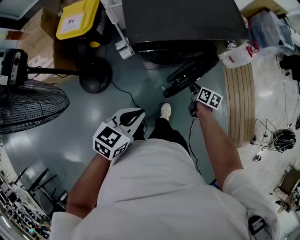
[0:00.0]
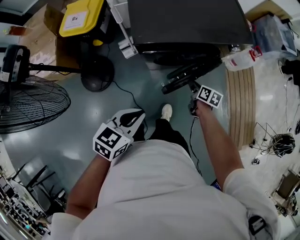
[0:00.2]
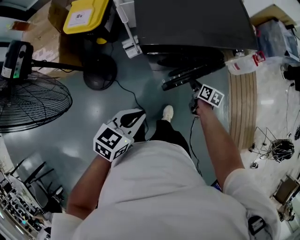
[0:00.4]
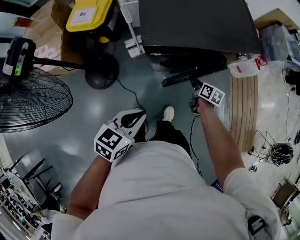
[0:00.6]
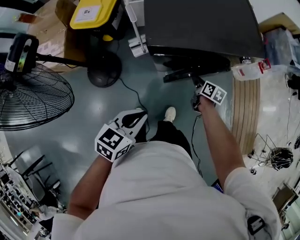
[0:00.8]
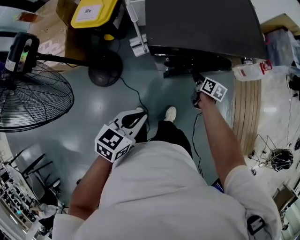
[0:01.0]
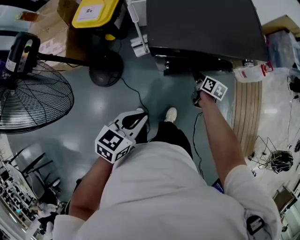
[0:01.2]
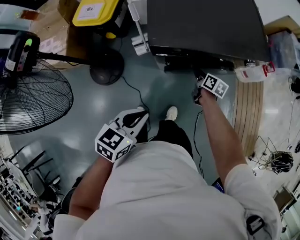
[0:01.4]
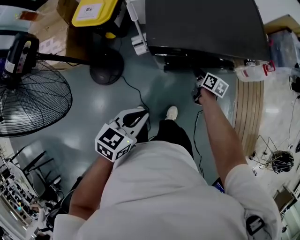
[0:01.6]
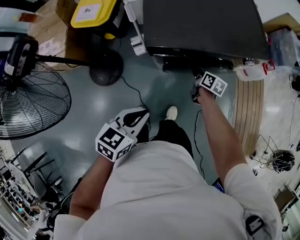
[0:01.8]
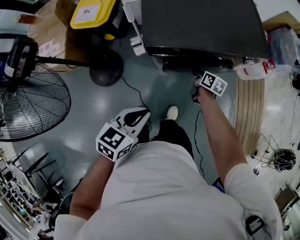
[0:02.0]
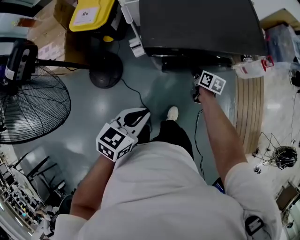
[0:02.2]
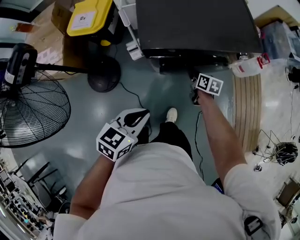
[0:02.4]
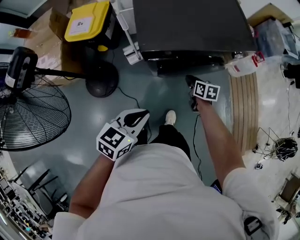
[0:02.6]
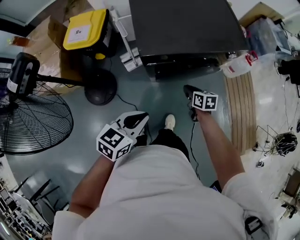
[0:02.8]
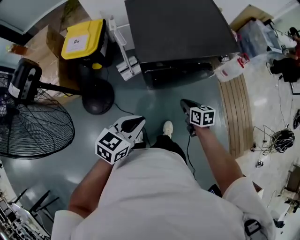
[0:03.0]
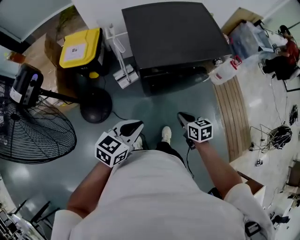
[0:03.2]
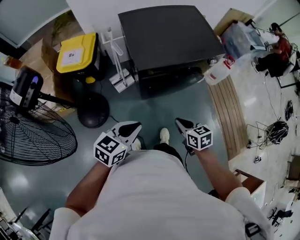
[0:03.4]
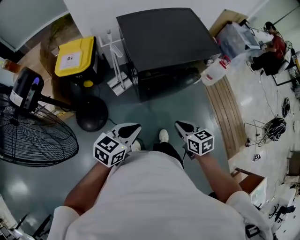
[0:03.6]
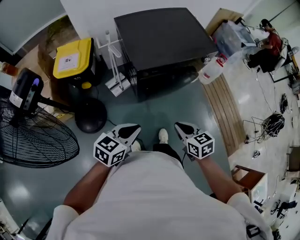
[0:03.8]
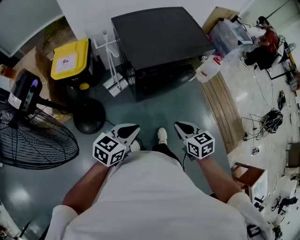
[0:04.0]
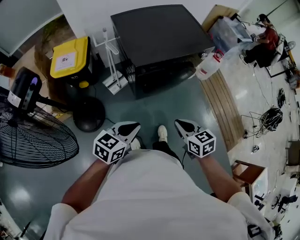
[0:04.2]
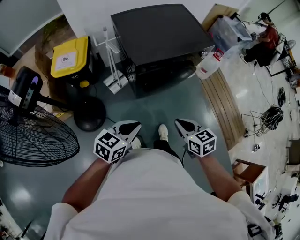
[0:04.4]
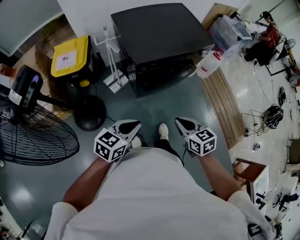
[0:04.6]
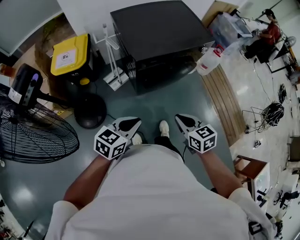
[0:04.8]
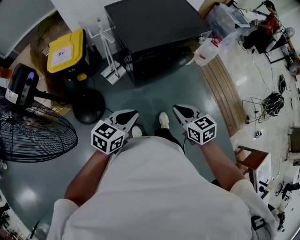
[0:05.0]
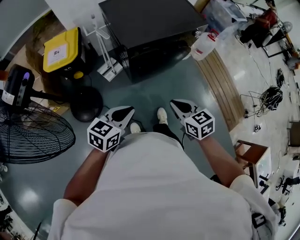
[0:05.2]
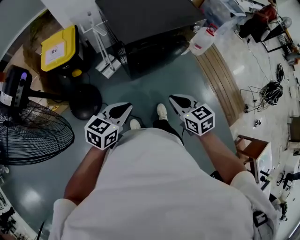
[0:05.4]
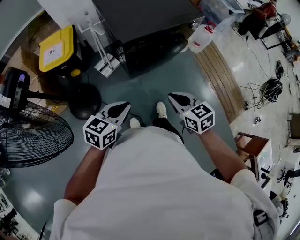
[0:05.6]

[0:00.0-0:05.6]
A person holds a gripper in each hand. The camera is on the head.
0:00.0 to 0:01.4: The right gripper goes roughly 15 cm forward and to the left.
0:01.4 to 0:02.8: The right gripper moves backward and upward, roughly 10 cm.
0:02.8 to 0:04.2: The left gripper shifts some 10 cm backward and to the left. Meanwhile the right gripper is displaced backward and upward by roughly 30 cm.
0:04.2 to 0:05.6: The grippers stay close to where they were, moving slightly.

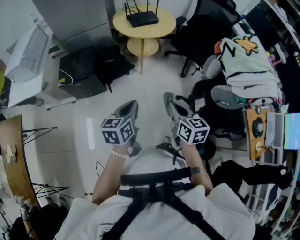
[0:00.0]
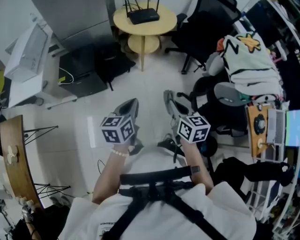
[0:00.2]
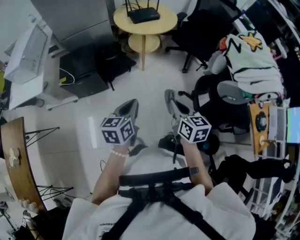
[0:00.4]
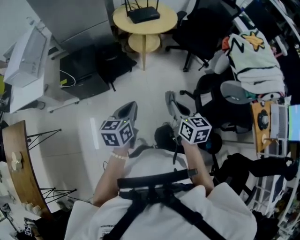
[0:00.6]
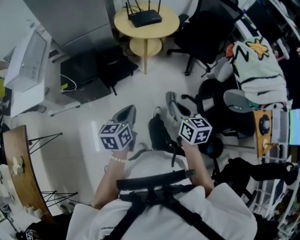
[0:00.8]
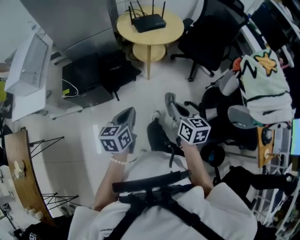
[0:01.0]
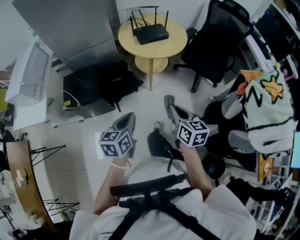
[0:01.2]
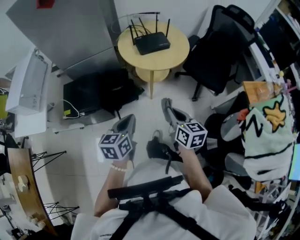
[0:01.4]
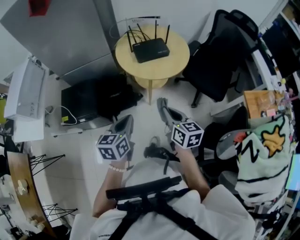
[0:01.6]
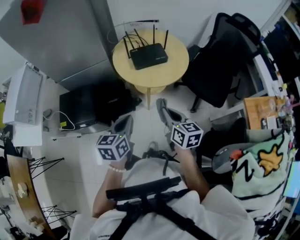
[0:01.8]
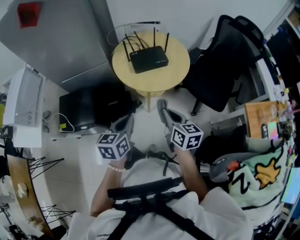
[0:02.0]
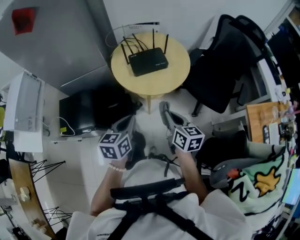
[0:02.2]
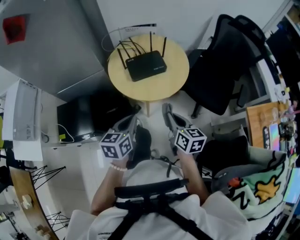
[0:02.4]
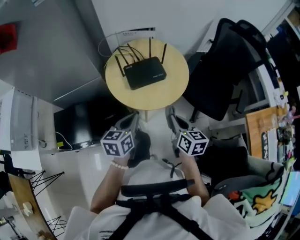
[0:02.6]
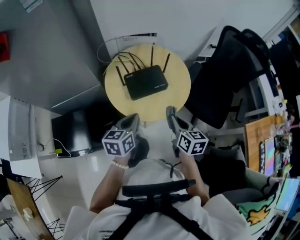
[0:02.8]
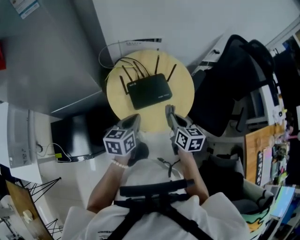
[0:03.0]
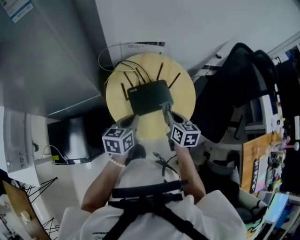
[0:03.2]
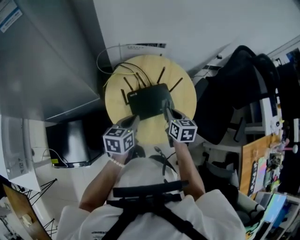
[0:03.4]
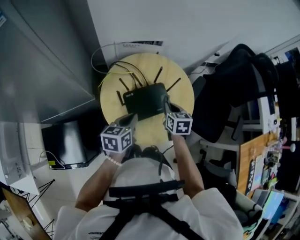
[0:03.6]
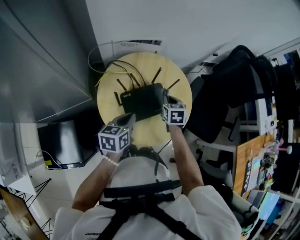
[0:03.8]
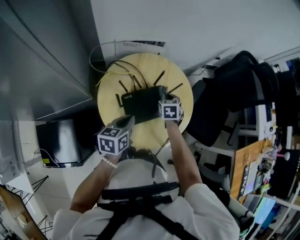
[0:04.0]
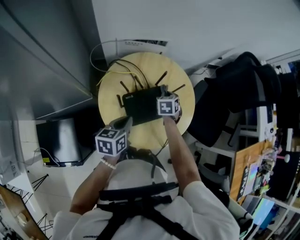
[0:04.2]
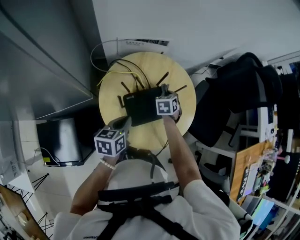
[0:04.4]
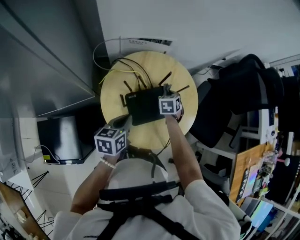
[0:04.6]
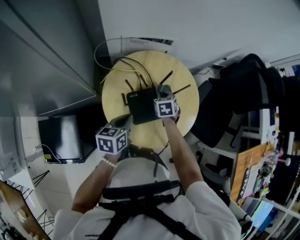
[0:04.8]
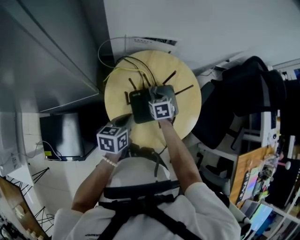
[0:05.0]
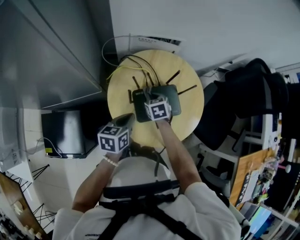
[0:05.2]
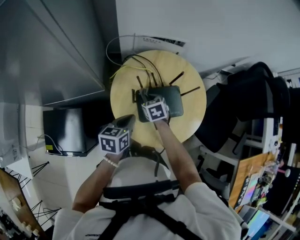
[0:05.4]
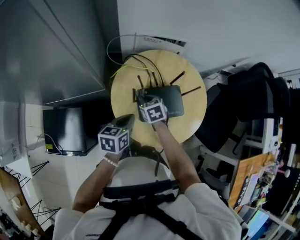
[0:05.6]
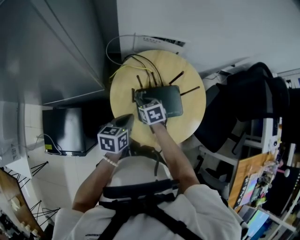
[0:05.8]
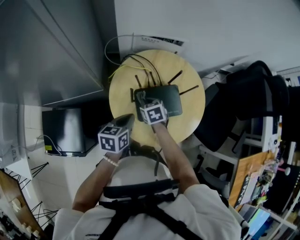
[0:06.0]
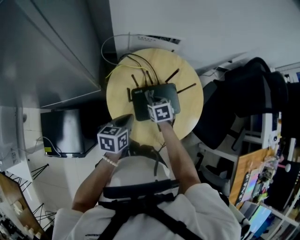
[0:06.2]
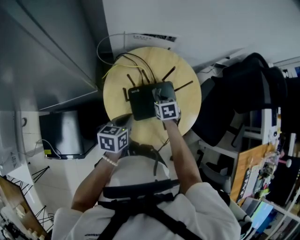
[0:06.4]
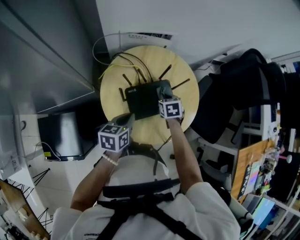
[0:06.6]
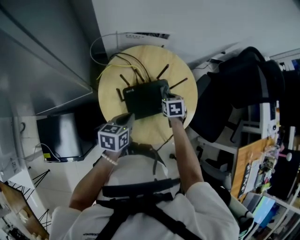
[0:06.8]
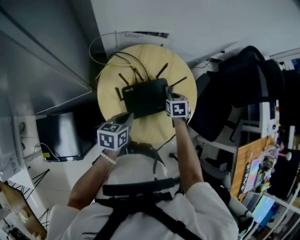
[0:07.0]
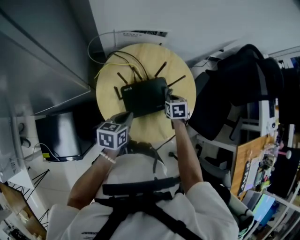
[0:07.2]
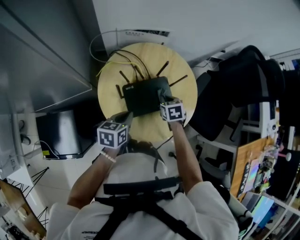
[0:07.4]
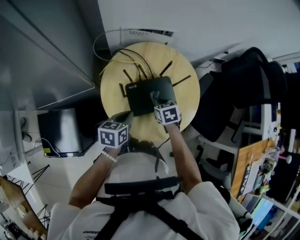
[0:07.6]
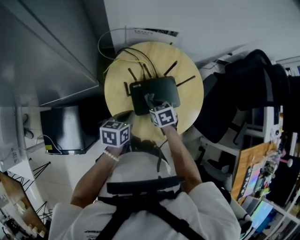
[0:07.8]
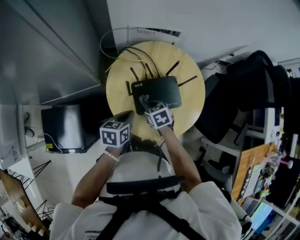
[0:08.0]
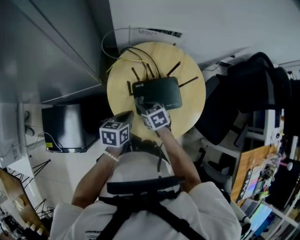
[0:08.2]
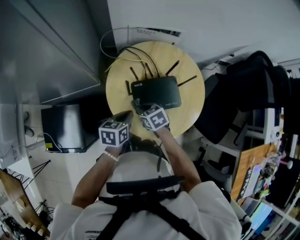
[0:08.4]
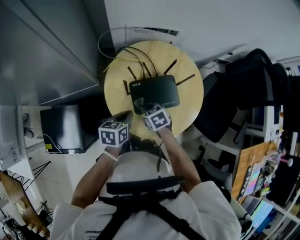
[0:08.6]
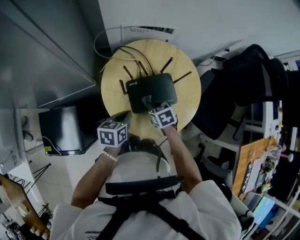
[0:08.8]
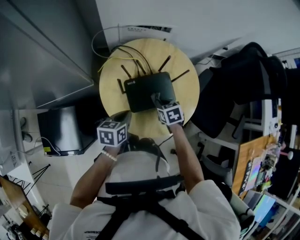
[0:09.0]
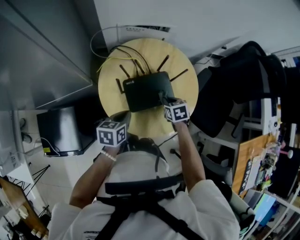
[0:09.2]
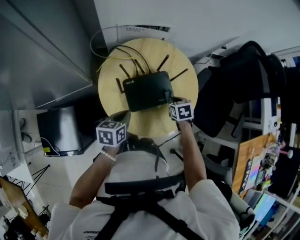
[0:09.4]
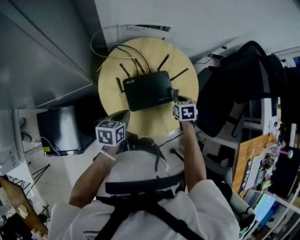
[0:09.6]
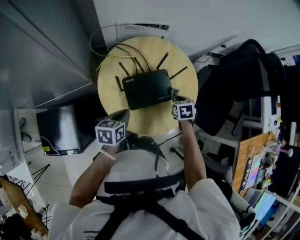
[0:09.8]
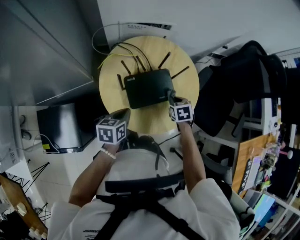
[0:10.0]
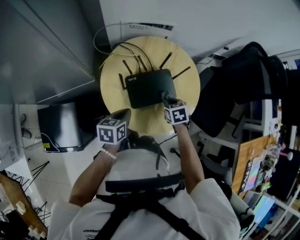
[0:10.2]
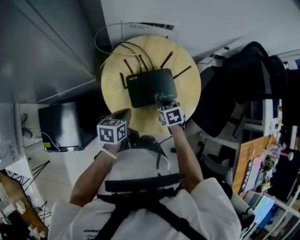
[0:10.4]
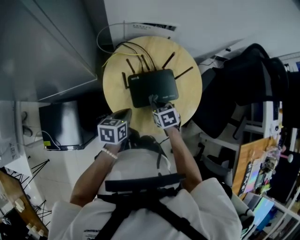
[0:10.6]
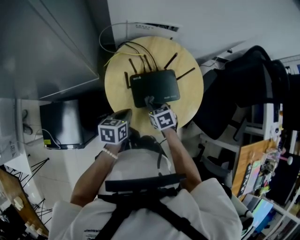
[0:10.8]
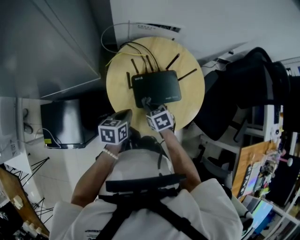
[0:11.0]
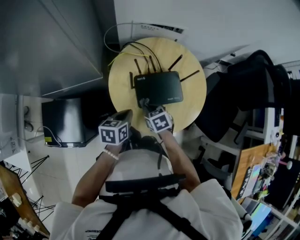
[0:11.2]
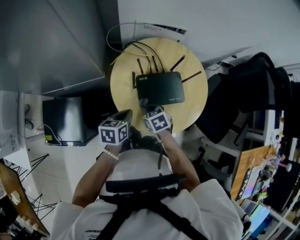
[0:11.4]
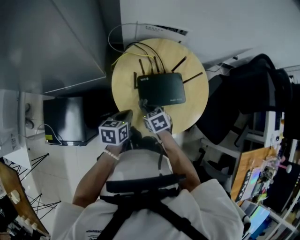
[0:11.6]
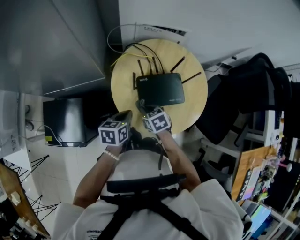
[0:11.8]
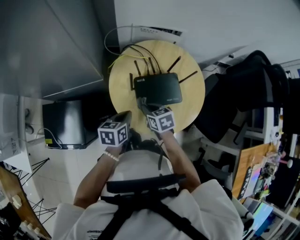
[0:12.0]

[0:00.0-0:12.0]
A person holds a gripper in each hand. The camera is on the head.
0:00.0 to 0:01.6: Both grippers move forward, approximately 35 cm.
0:01.6 to 0:03.0: Both grippers travel together forward, approximately 35 cm.
0:03.0 to 0:04.4: The right gripper travels forward and downward by approximately 30 cm, and turns by approximately 40 degrees. Meanwhile the left gripper is displaced forward, downward and to the left by about 15 cm.
0:04.4 to 0:06.0: The right gripper ends up roughly 20 cm from where it was, and rotates roughly 30 degrees.
0:06.0 to 0:07.6: The right gripper goes approximately 10 cm to the right.
0:07.6 to 0:09.0: The right gripper travels to the left and back again, about 10 cm each way.
0:09.0 to 0:10.4: The right gripper reaches approximately 10 cm to the right, then returns.
0:10.4 to 0:12.0: The right gripper moves to the left, some 10 cm.

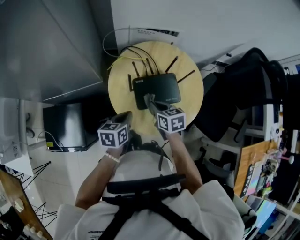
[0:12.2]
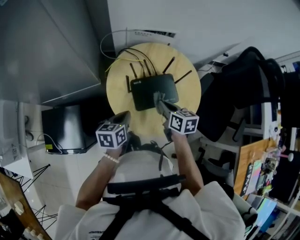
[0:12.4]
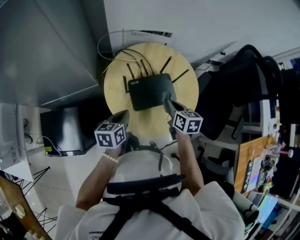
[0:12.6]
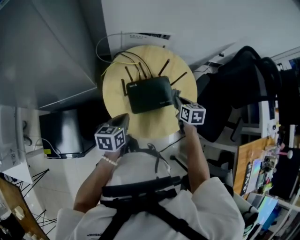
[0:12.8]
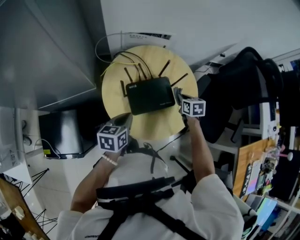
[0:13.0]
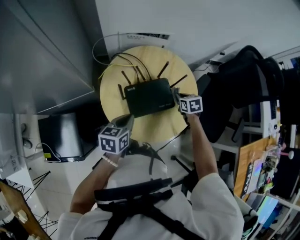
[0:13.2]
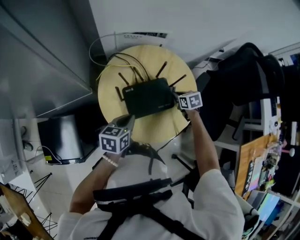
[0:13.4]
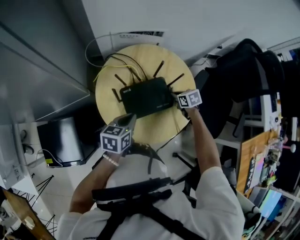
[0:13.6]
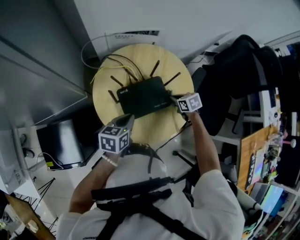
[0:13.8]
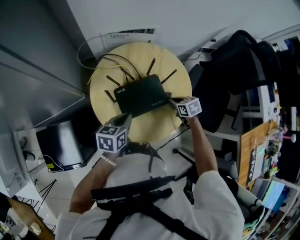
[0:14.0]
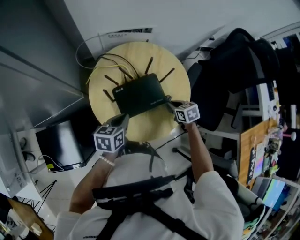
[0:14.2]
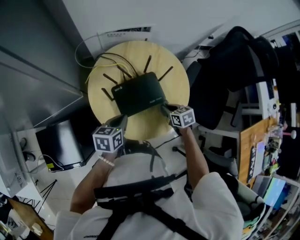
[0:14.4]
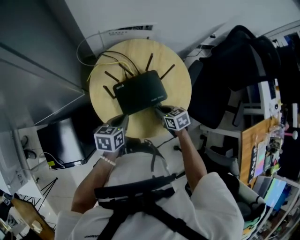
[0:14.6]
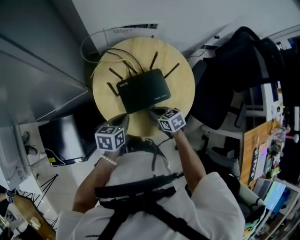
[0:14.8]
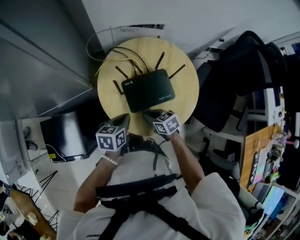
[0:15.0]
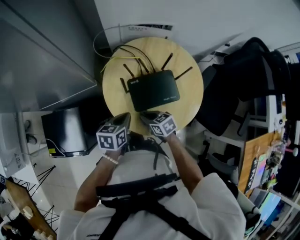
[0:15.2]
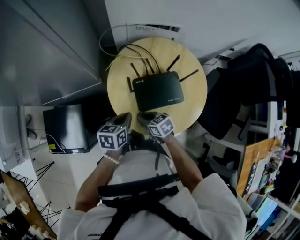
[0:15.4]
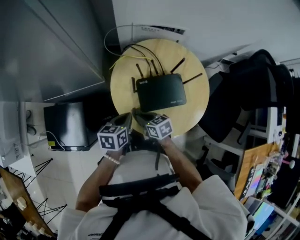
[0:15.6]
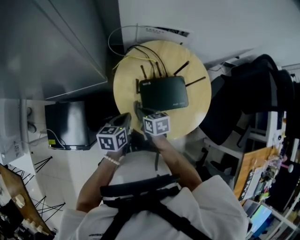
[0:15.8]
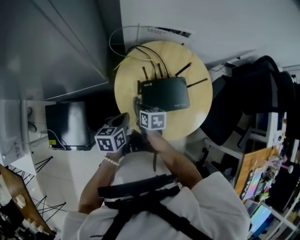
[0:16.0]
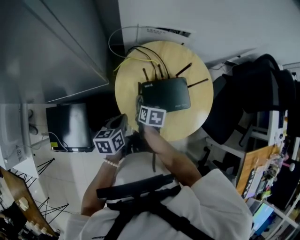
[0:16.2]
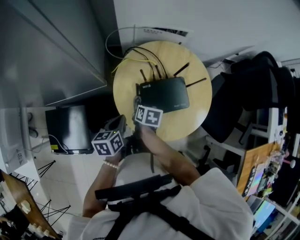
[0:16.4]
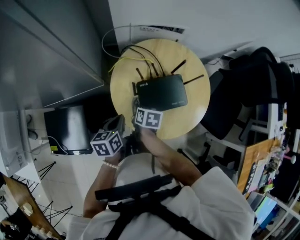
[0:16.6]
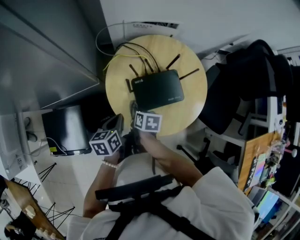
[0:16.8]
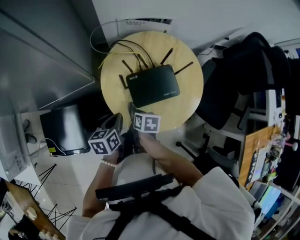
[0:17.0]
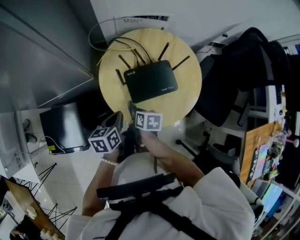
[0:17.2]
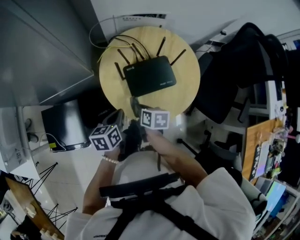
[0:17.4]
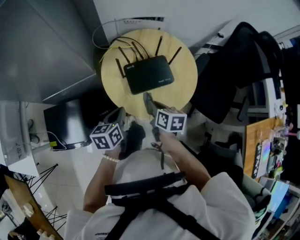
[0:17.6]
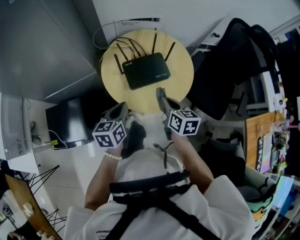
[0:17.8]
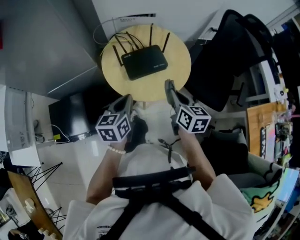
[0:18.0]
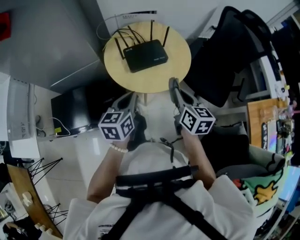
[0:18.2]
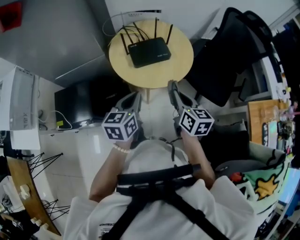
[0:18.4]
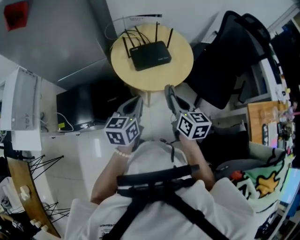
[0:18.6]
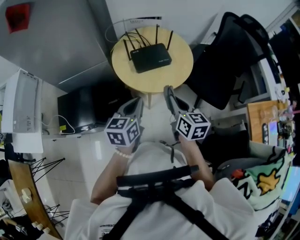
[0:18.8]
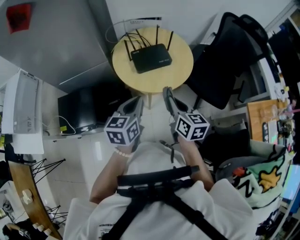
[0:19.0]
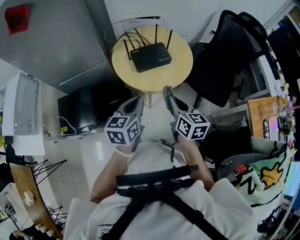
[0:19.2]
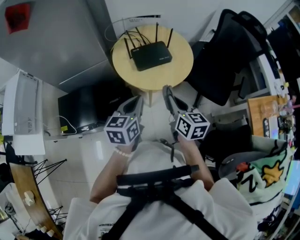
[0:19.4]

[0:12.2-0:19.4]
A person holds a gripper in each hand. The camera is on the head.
0:12.2 to 0:13.6: The right gripper moves to the right, downward and forward, about 25 cm. Meanwhile the left gripper is displaced to the right and forward by about 10 cm.
0:13.6 to 0:15.0: The right gripper is displaced to the left and backward by approximately 25 cm; the left gripper ends up approximately 5 cm from where it was.
0:15.0 to 0:16.6: The left gripper shifts some 10 cm to the left, while the right gripper travels to the left and forward by approximately 10 cm, and swivels approximately 40 degrees.
0:16.6 to 0:18.0: The right gripper travels upward, to the right and backward by approximately 35 cm, and changes its angle by roughly 30 degrees; the left gripper is displaced backward, upward and to the right by roughly 25 cm, and changes its angle by roughly 20 degrees.
0:18.0 to 0:19.4: The right gripper moves backward, some 15 cm, while the left gripper goes roughly 15 cm backward and upward.
